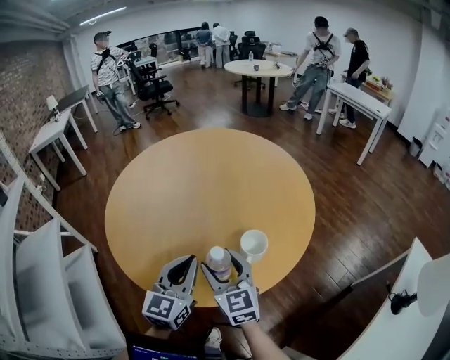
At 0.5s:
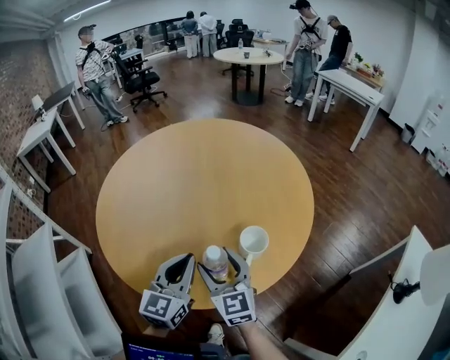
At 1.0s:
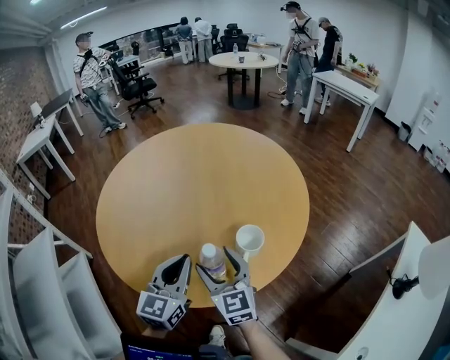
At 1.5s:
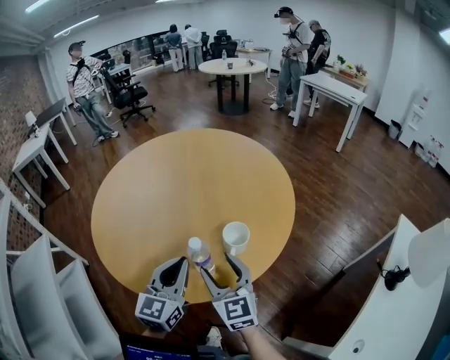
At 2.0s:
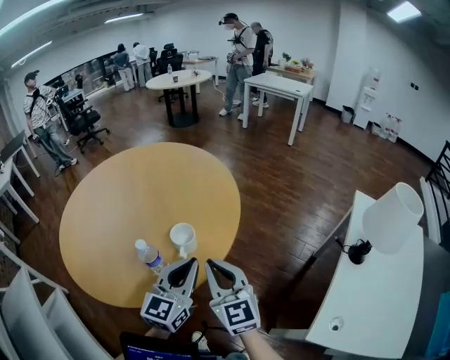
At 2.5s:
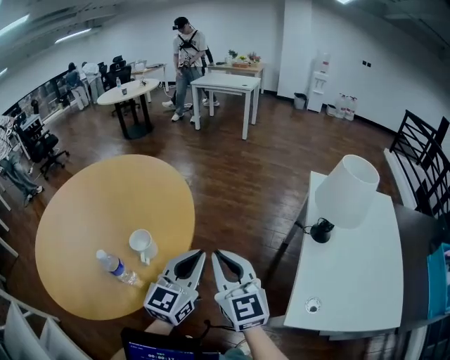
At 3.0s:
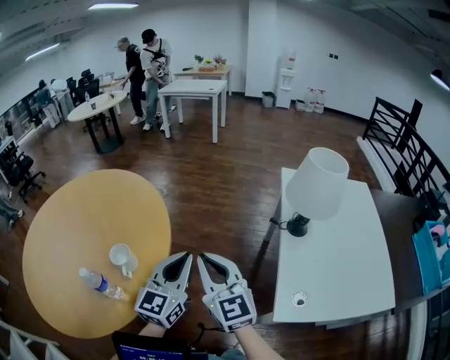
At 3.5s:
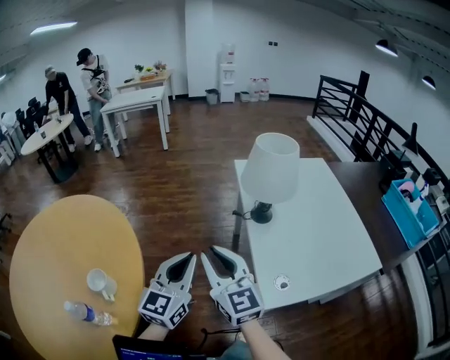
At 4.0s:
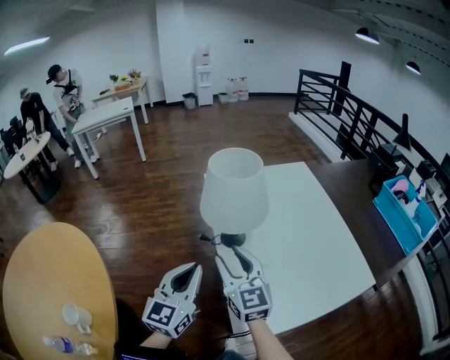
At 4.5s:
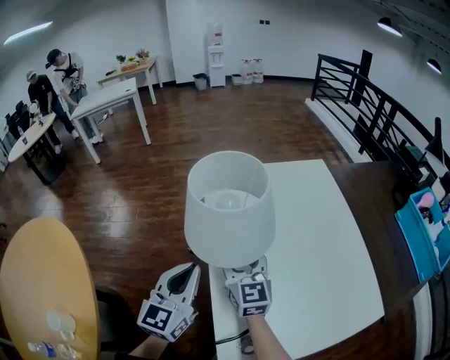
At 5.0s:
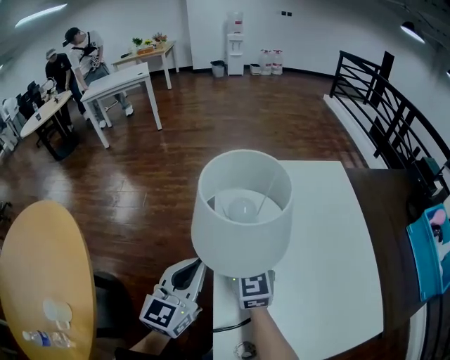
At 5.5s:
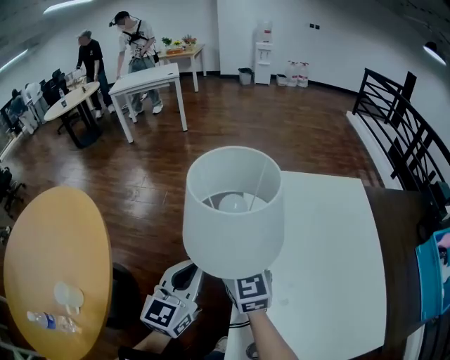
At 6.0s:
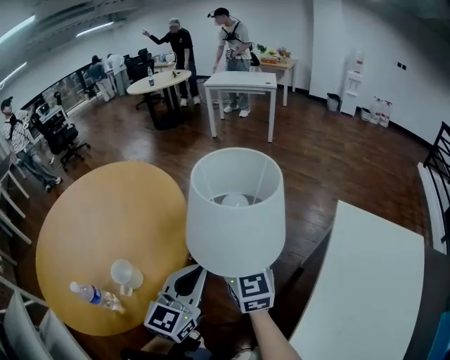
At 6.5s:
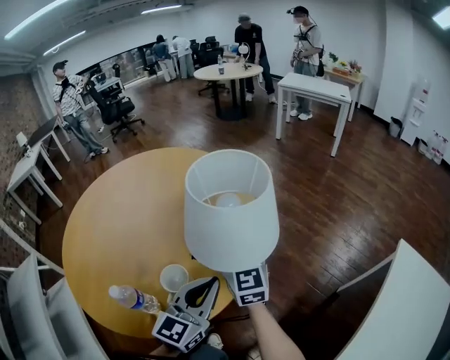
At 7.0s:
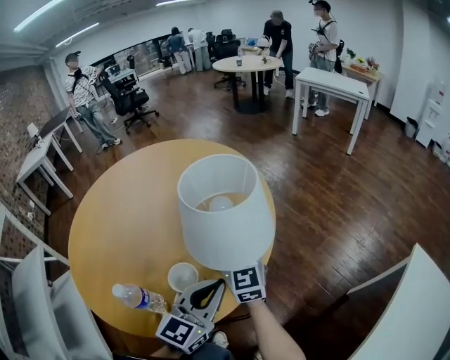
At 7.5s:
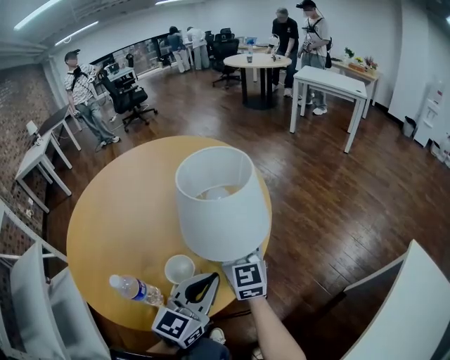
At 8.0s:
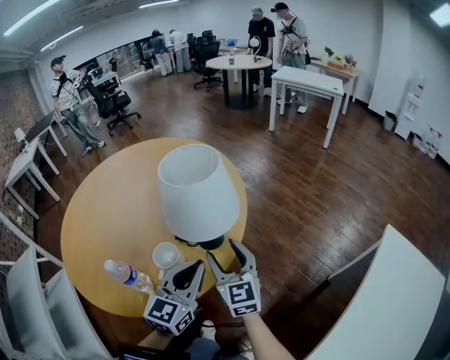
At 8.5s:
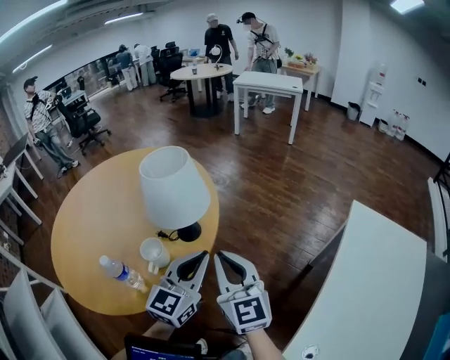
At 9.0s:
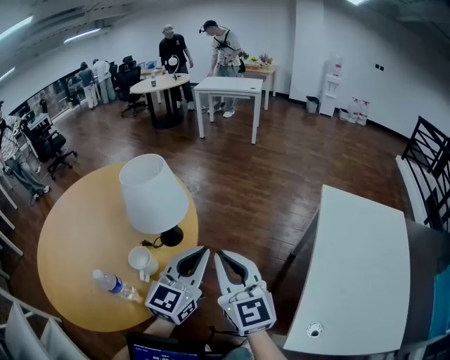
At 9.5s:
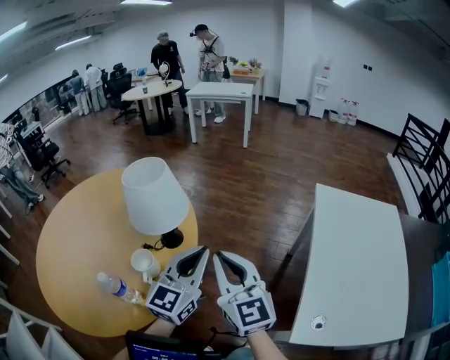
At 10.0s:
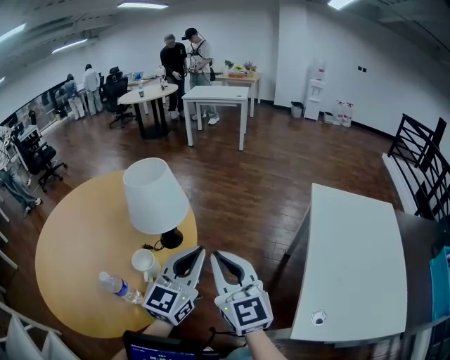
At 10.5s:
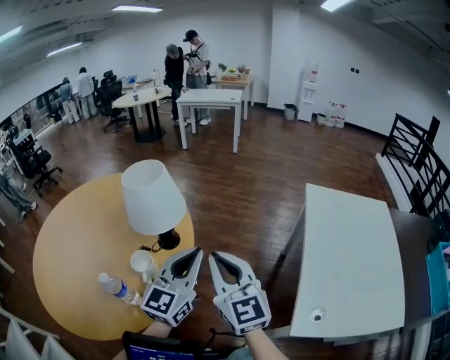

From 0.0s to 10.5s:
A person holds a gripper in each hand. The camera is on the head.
From 0.0s to 2.0s: The right gripper moves to the right and backward, about 20 cm, rotates roughly 20 degrees, and closes its fingers. Meanwhile the left gripper moves to the right, about 20 cm, and swivels some 20 degrees.
From 2.0s to 4.0s: Both grippers are carried some 50 cm. The right gripper turns by about 50 degrees, and opens; the left gripper rotates roughly 50 degrees.
From 4.0s to 6.5s: The left gripper ends up about 40 cm from where it was, and turns by approximately 50 degrees, while the right gripper changes place by about 50 cm, and turns by about 60 degrees.
From 6.5s to 8.5s: The right gripper is displaced backward by some 20 cm, and closes its fingers; the left gripper goes some 10 cm to the right and backward.
From 8.5s to 10.5s: The right gripper goes about 5 cm backward. Meanwhile the left gripper moves roughly 5 cm.

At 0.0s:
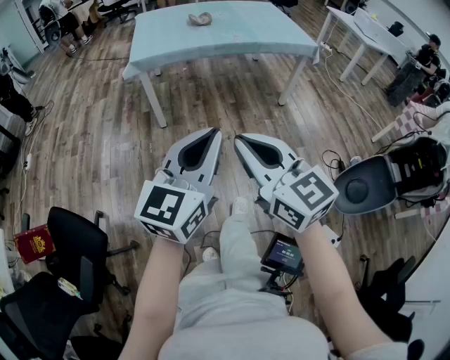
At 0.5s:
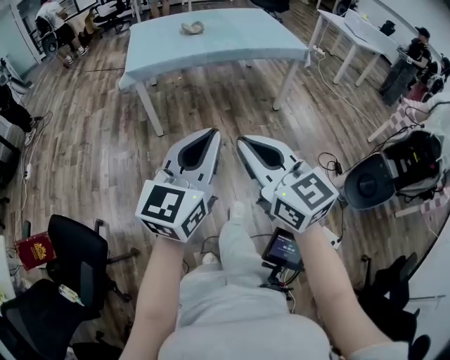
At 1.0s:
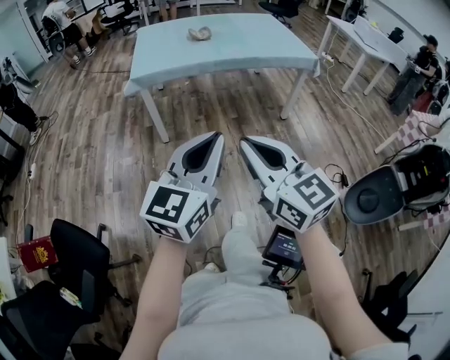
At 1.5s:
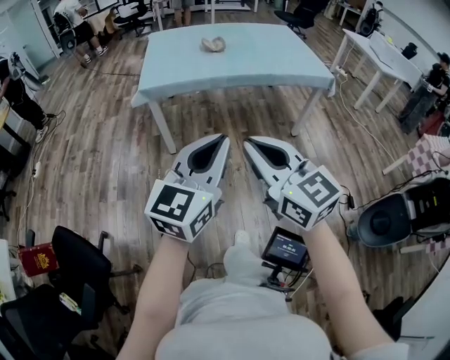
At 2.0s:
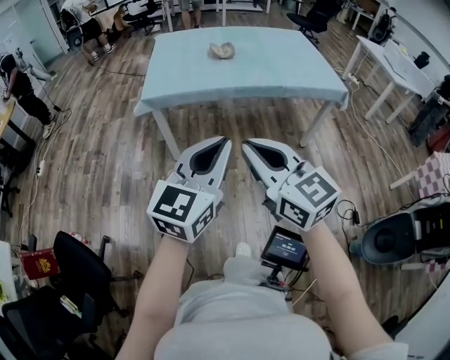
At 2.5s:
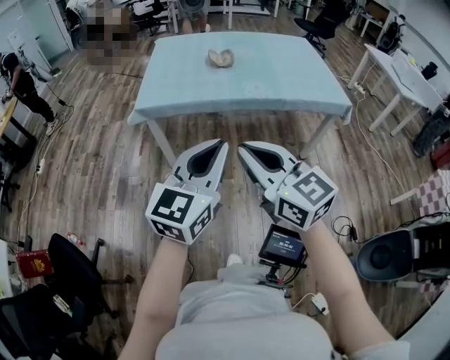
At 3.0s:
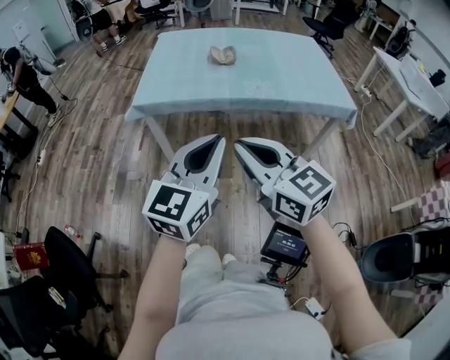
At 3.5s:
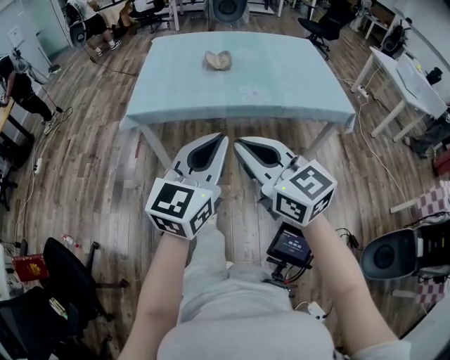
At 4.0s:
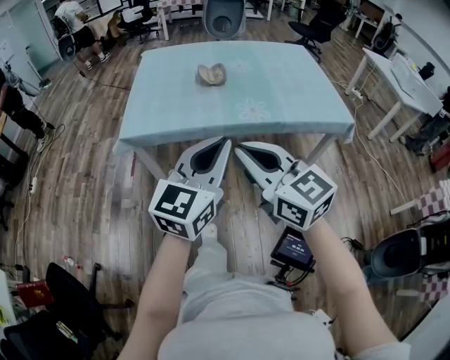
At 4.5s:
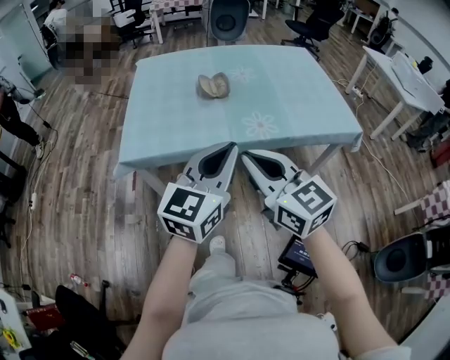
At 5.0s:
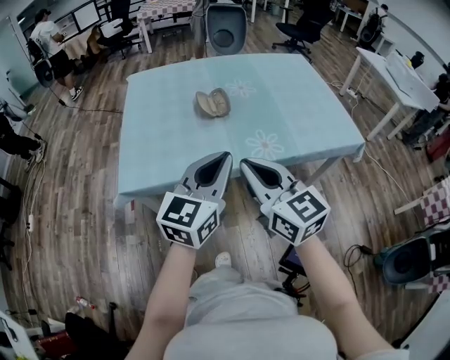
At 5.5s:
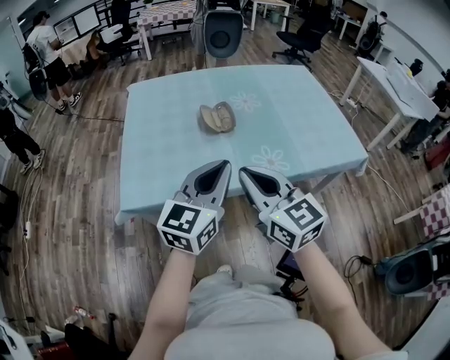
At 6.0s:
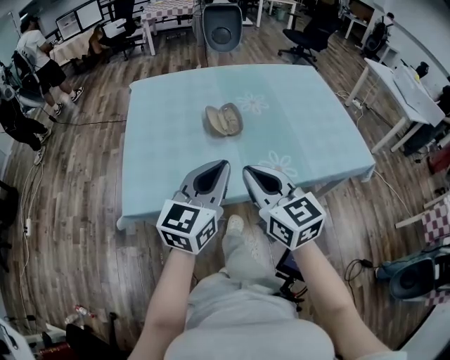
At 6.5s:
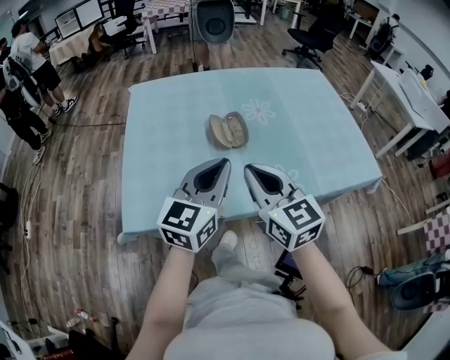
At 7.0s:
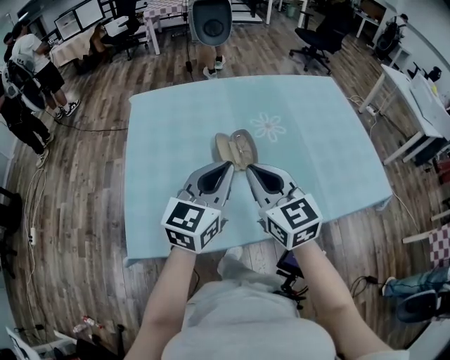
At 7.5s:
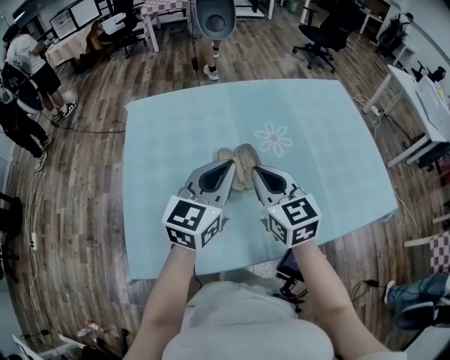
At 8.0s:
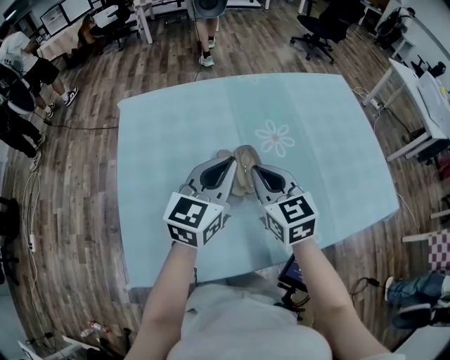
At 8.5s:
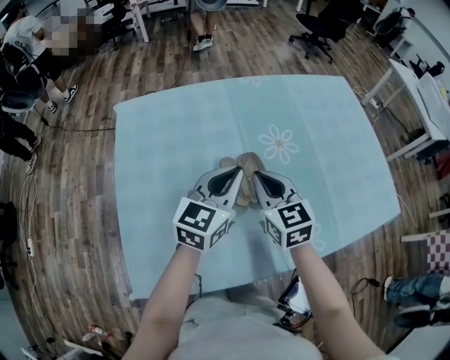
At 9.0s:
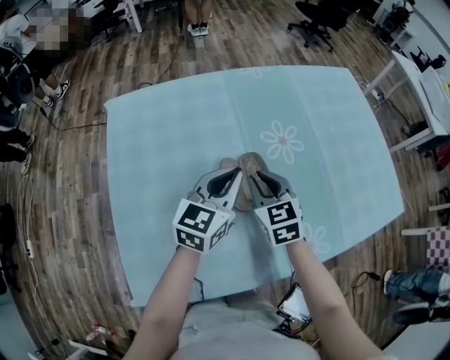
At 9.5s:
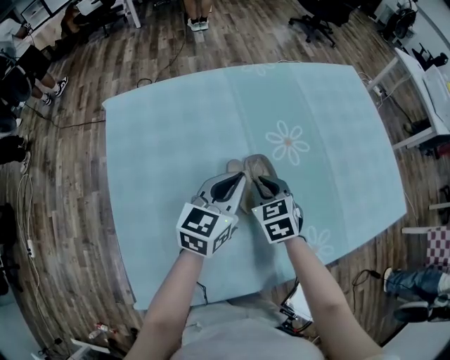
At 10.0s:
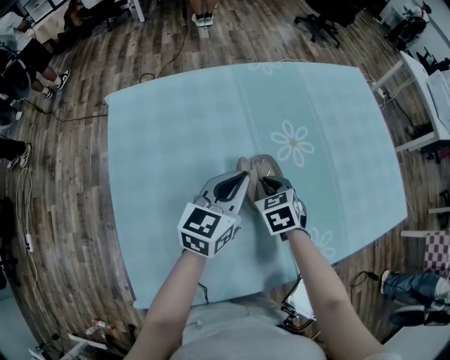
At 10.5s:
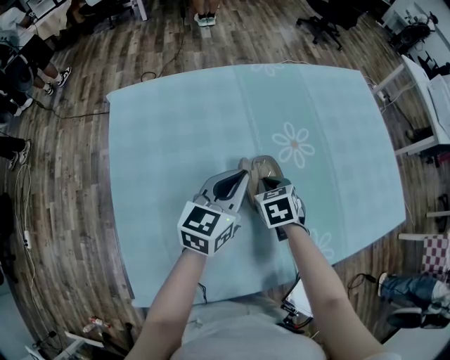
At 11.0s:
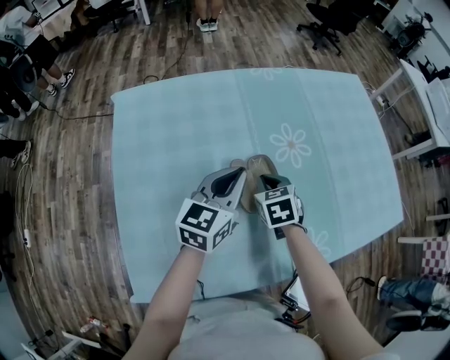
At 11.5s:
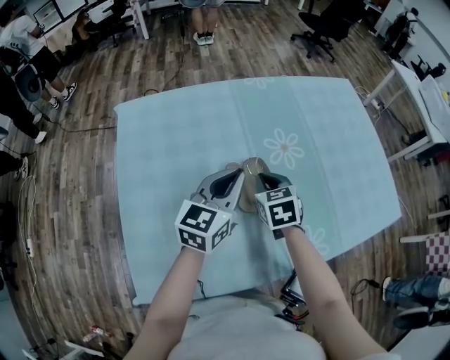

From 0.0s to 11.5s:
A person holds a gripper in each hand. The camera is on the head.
From 0.0s to 2.0s: Both grippers travel together forward, about 25 cm.
From 2.0s to 4.0s: The left gripper is displaced forward and to the right by about 25 cm. Meanwhile the right gripper moves forward, some 20 cm.
From 4.0s to 6.0s: Both grippers move forward, roughly 25 cm.
From 6.0s to 7.5s: The grippers both shift forward by roughly 25 cm.
From 7.5s to 9.5s: The two grippers go roughly 20 cm downward and forward. The right gripper rotates approximately 30 degrees.
From 9.5s to 11.5s: There are only small adjustments of the grippers.

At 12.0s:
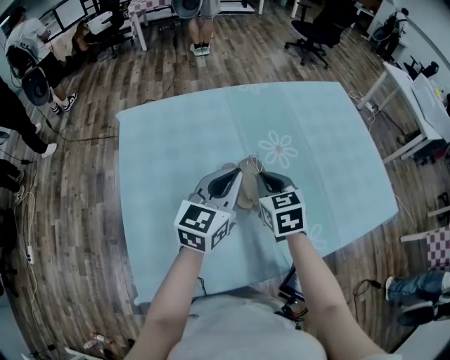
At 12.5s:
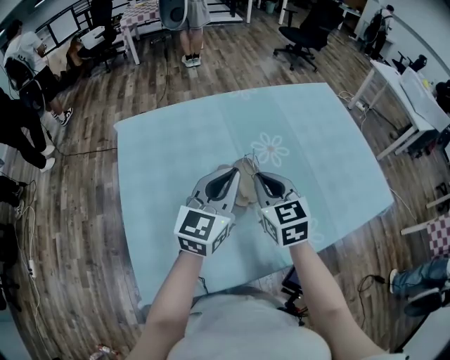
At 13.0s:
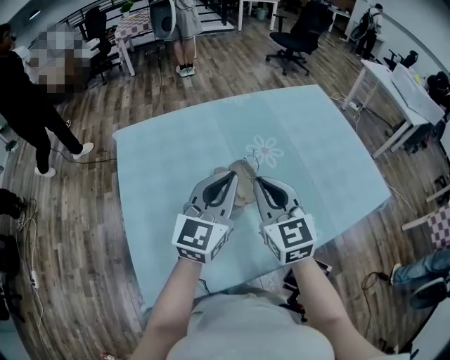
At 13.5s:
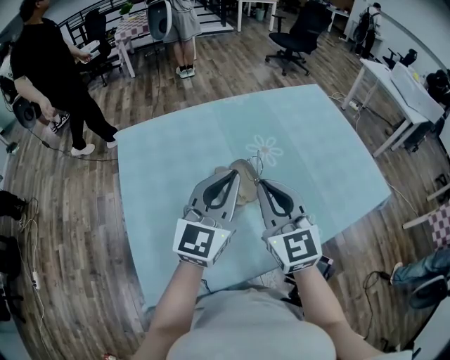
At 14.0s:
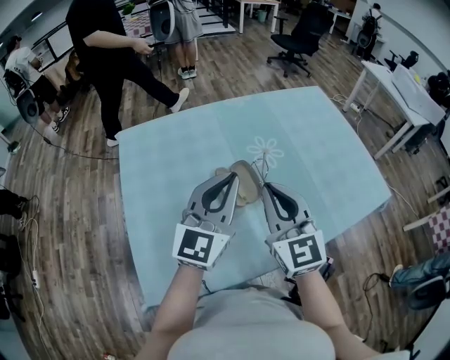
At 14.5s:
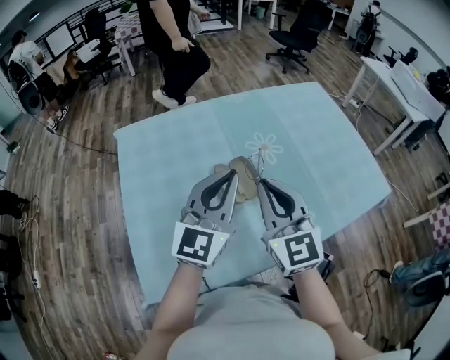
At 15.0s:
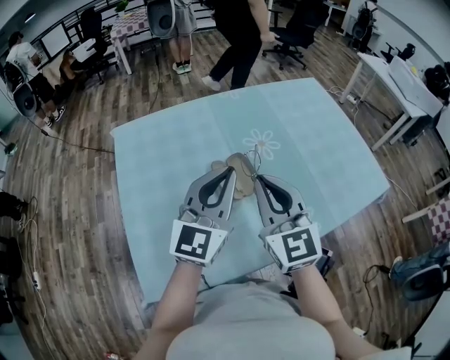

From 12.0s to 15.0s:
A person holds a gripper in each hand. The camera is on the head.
From 12.0s to 13.5s: The right gripper shifts about 20 cm upward and backward, and tilts its fingers about 30 degrees upward. The left gripper is displaced upward and backward by roughly 10 cm.
From 13.5s to 15.0s: The grippers stay close to where they were, moving slightly.

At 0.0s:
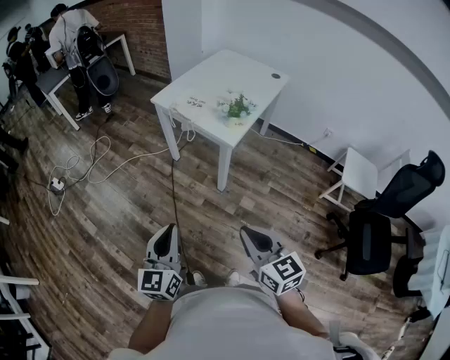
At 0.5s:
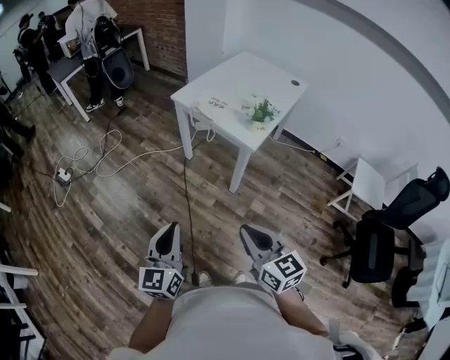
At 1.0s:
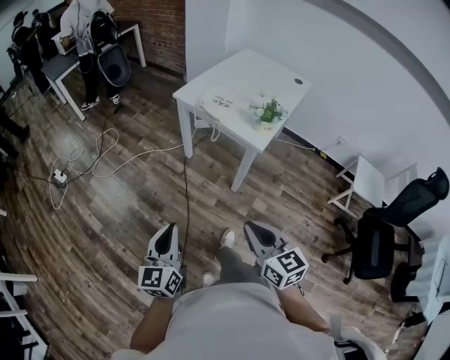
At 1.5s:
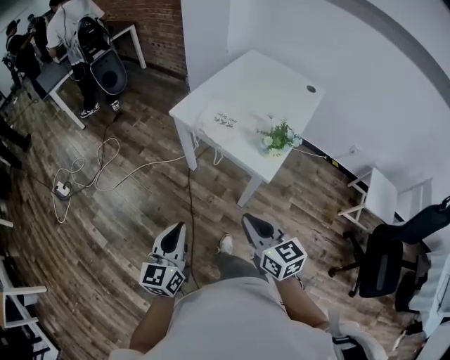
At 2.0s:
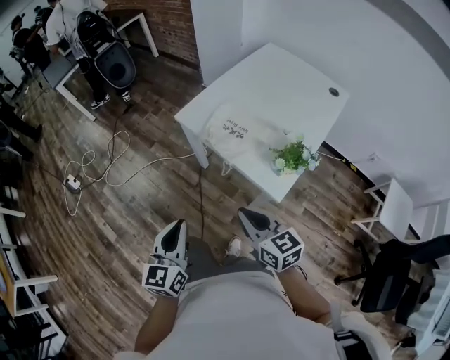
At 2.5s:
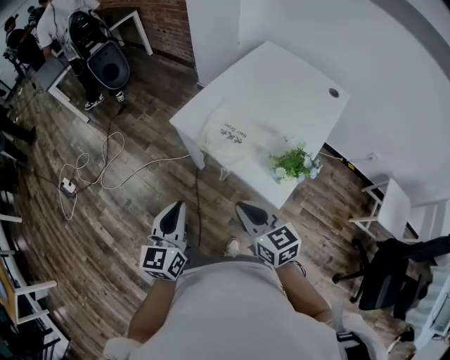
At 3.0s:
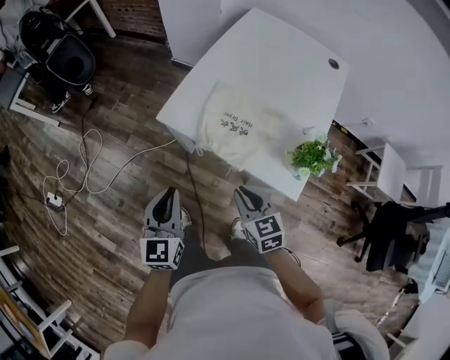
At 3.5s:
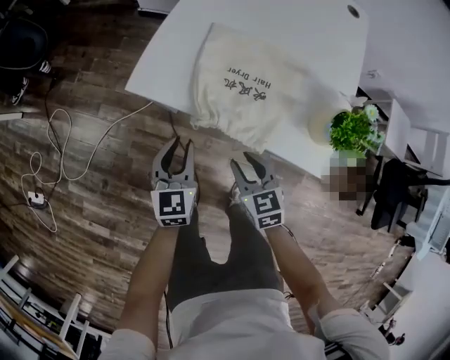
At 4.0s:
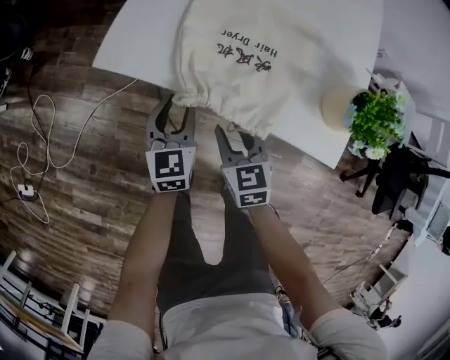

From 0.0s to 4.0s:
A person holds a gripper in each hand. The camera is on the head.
From 0.0s to 2.0s: The pair of grippers is taken forward, roughly 50 cm.
From 2.0s to 4.0s: Both grippers move downward, roughly 40 cm. The left gripper rotates approximately 30 degrees, and opens up; the right gripper changes its angle by roughly 40 degrees, and opens.
